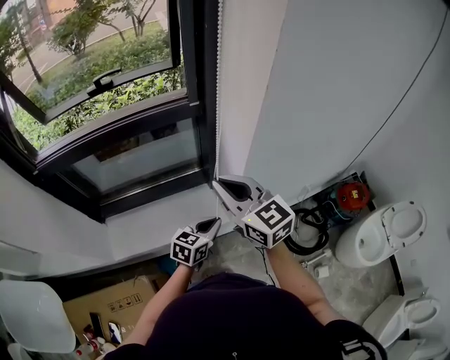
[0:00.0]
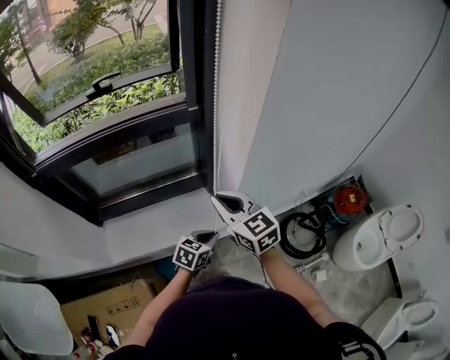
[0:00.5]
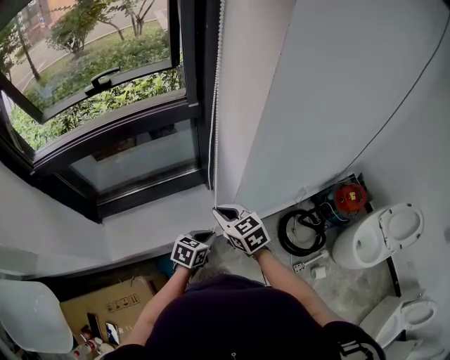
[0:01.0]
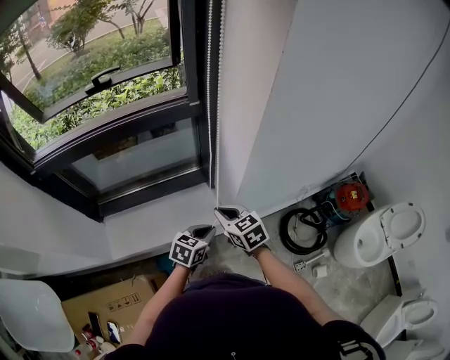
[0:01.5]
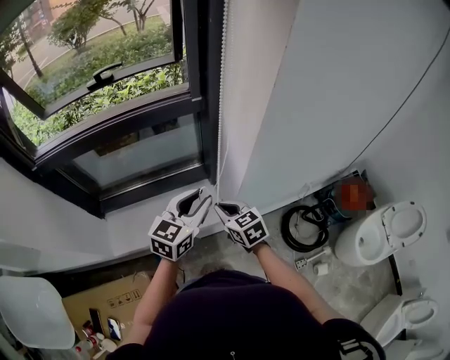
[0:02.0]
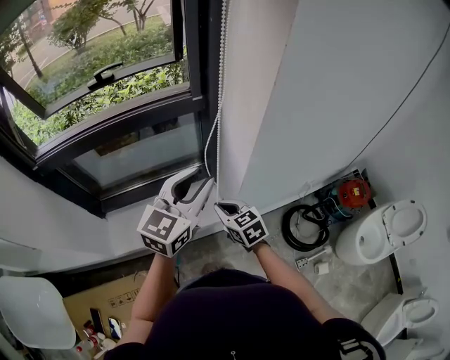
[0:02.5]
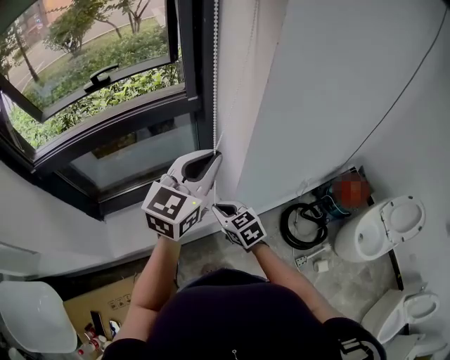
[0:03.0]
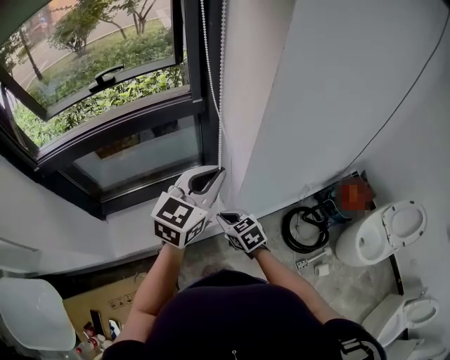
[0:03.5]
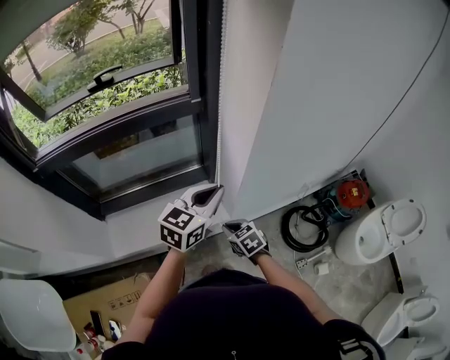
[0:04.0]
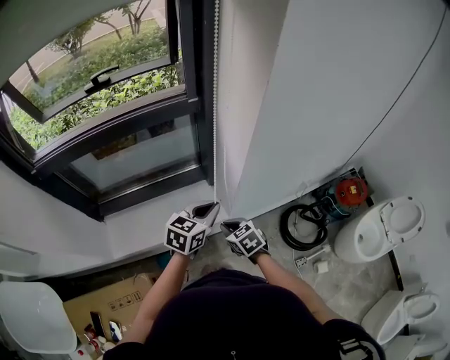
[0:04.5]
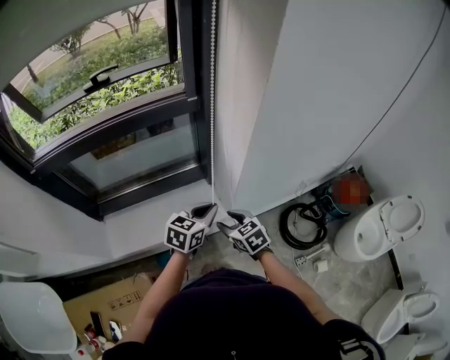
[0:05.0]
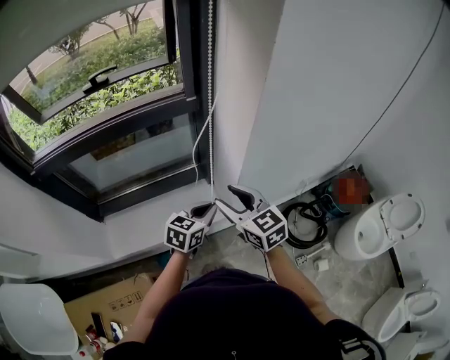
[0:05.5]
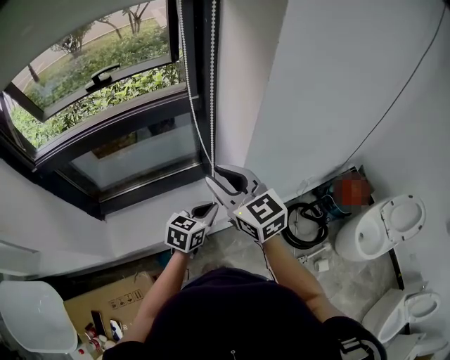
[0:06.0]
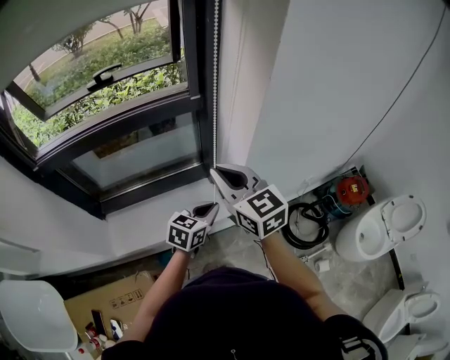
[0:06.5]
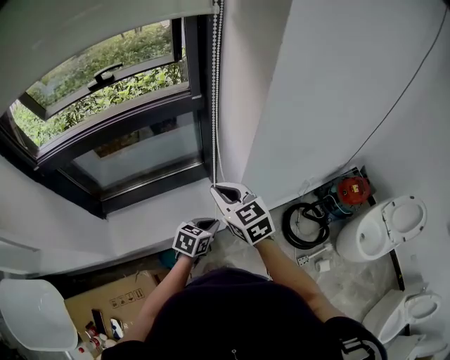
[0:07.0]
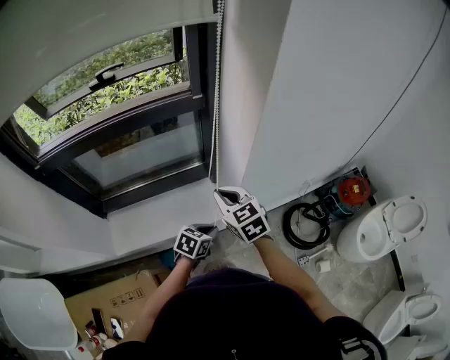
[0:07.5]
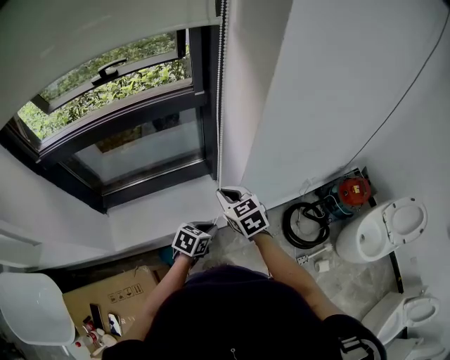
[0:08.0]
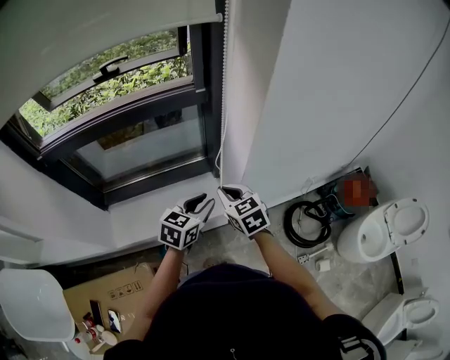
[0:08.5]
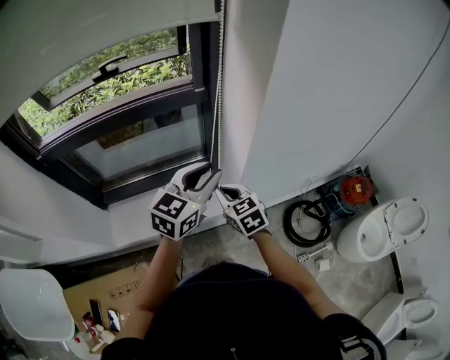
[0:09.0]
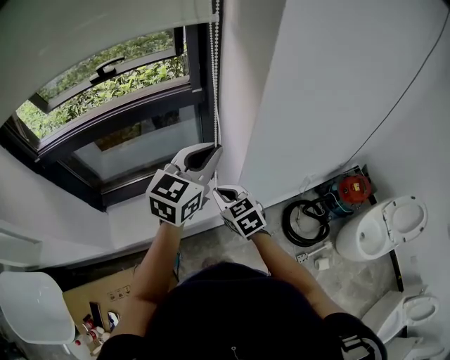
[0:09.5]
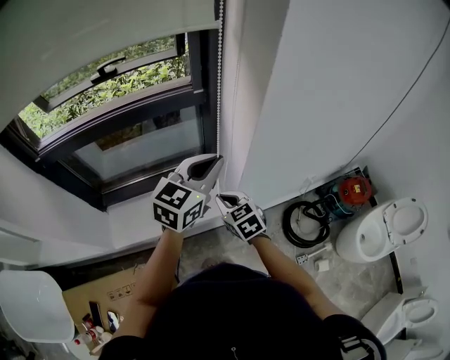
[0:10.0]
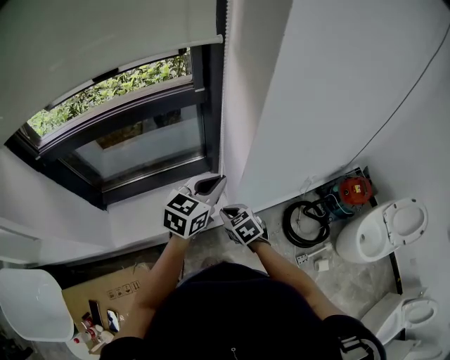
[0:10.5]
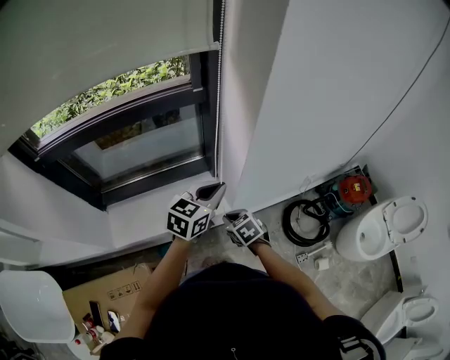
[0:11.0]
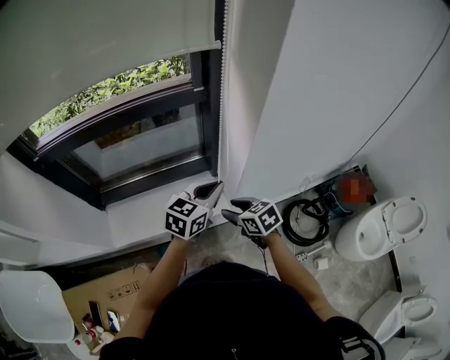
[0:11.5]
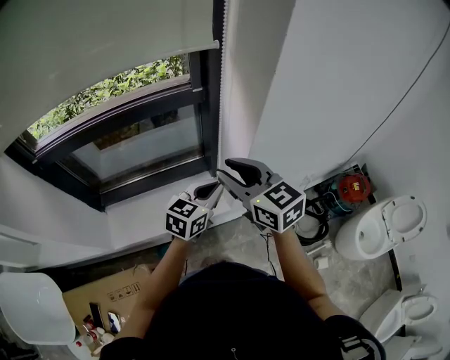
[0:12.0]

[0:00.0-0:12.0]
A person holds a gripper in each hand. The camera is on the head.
0:00.0 to 0:02.0: The left gripper heads upward, covering some 10 cm, and opens, while the right gripper goes approximately 20 cm downward, and changes its angle by some 30 degrees.
0:02.0 to 0:04.0: The right gripper shifts some 10 cm downward and backward. The left gripper travels upward and back again, some 15 cm each way, and closes.
0:04.0 to 0:06.0: The left gripper travels downward by approximately 10 cm. The right gripper is displaced upward by about 30 cm, angles its fingers upward, by roughly 40 degrees, and opens.
0:06.0 to 0:08.0: The right gripper moves downward, some 15 cm, swivels roughly 20 degrees, and closes its fingers, while the left gripper moves downward and backward, some 15 cm, and changes its angle by approximately 20 degrees.
0:08.0 to 0:10.0: The left gripper is displaced upward by some 30 cm, and angles its fingers upward, by roughly 30 degrees.
0:10.0 to 0:12.0: The left gripper moves downward, about 10 cm, while the right gripper travels upward by roughly 20 cm, turns by approximately 20 degrees, and opens up.

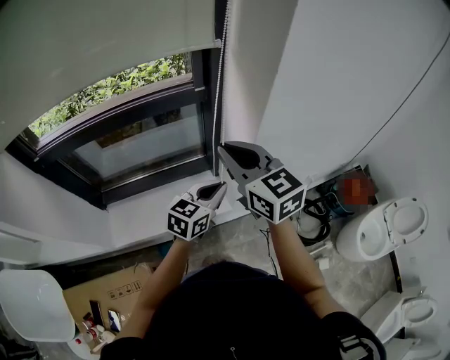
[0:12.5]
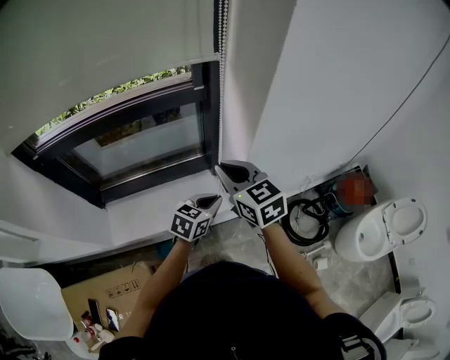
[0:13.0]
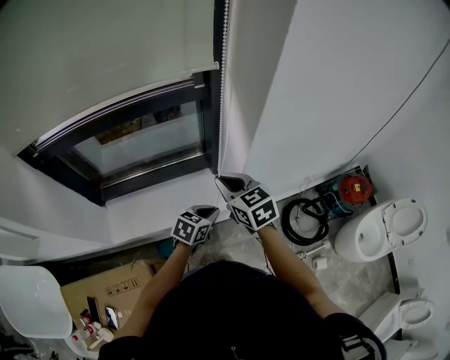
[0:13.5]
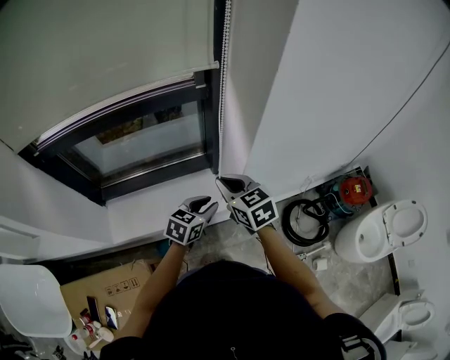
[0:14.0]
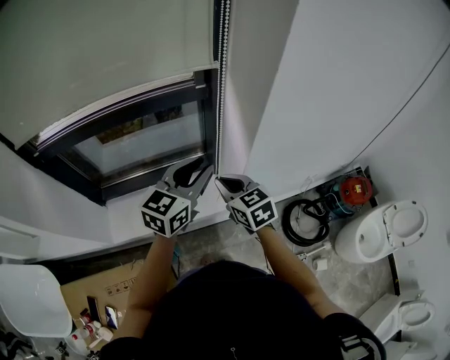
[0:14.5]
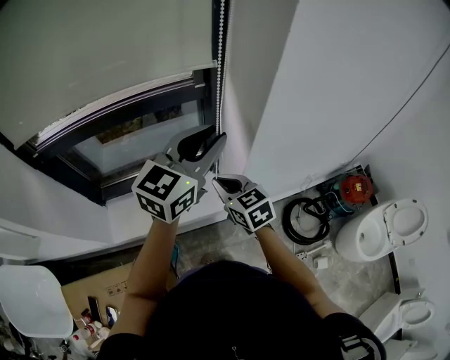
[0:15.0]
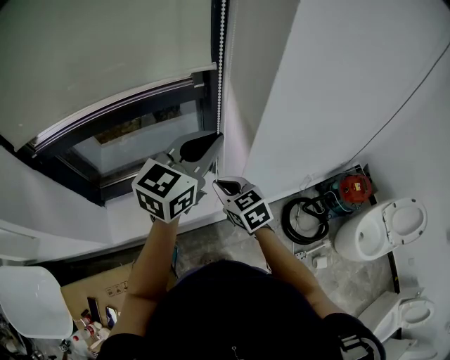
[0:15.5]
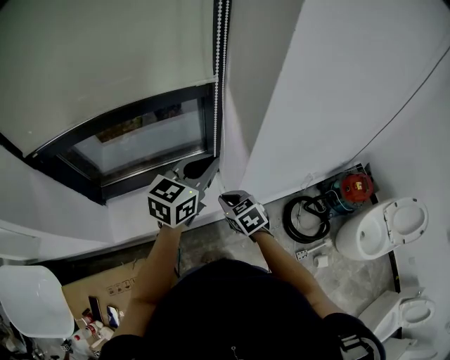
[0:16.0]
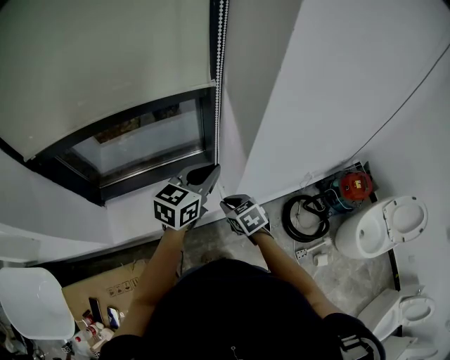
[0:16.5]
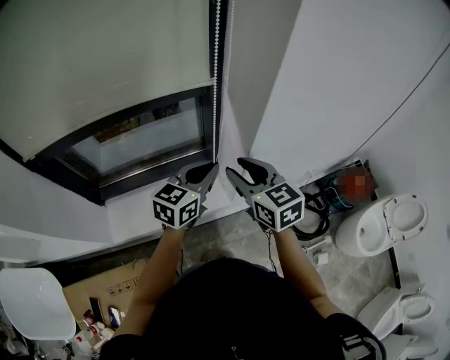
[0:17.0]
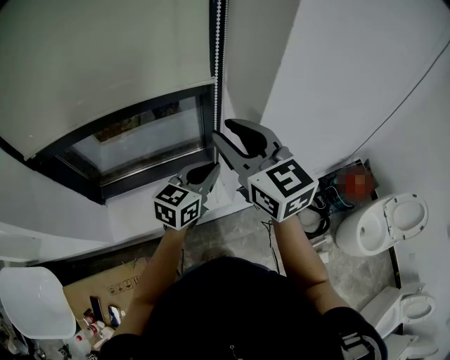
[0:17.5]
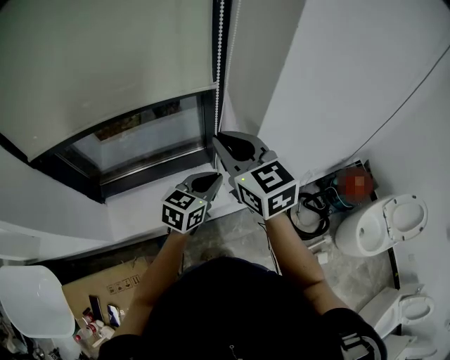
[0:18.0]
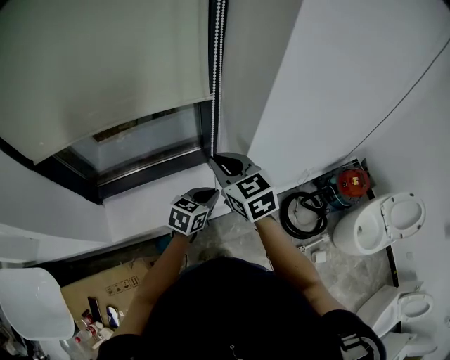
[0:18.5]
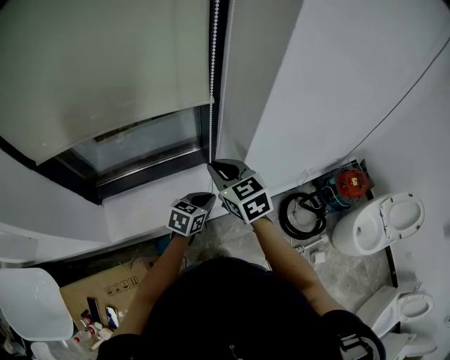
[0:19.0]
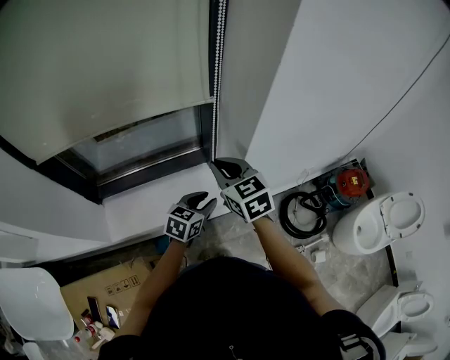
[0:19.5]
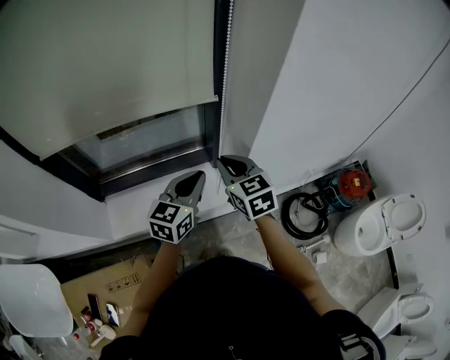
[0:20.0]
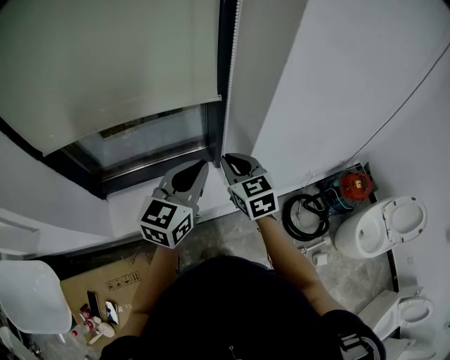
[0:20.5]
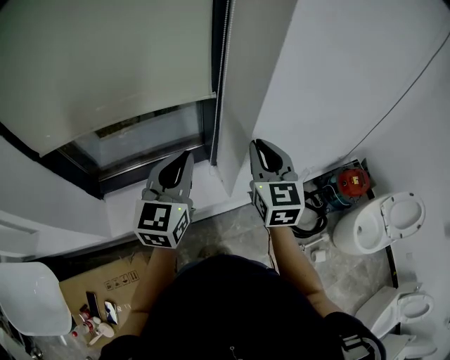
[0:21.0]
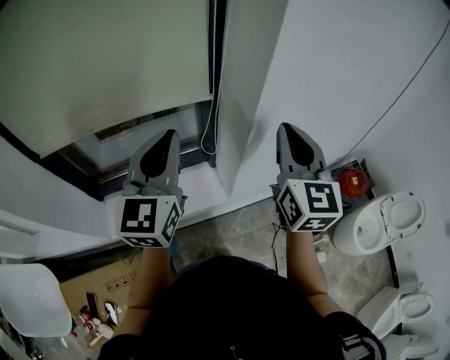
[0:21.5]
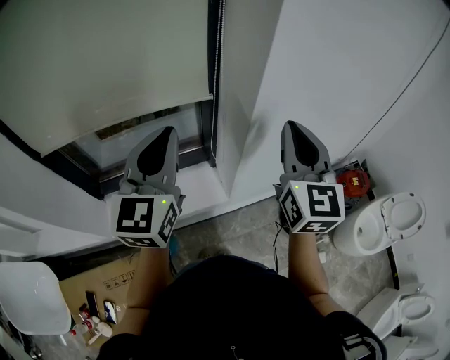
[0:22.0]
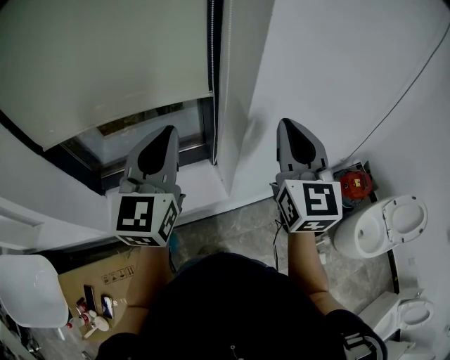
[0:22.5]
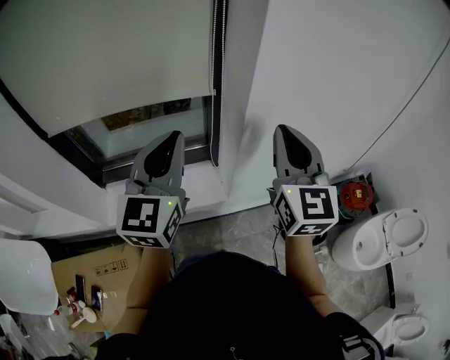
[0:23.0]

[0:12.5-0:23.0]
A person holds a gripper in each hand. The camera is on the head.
0:12.5 to 0:14.5: The right gripper travels downward by approximately 15 cm, while the left gripper shifts roughly 10 cm upward, and opens its fingers.
0:14.5 to 0:16.5: The left gripper moves approximately 10 cm upward and comes back, and closes up; the right gripper shifts approximately 15 cm downward, and changes its angle by about 20 degrees.
0:16.5 to 0:19.0: The left gripper goes approximately 15 cm downward, and rotates roughly 20 degrees, while the right gripper is displaced upward by about 15 cm, swivels approximately 20 degrees, and opens and closes again.
0:19.0 to 0:21.0: The left gripper goes about 25 cm upward, rotates approximately 40 degrees, and opens, then closes once more, while the right gripper travels to the right and upward by roughly 15 cm, and swivels approximately 30 degrees.
0:21.0 to 0:23.0: The left gripper moves upward, roughly 10 cm; the right gripper shifts roughly 10 cm upward and to the right.

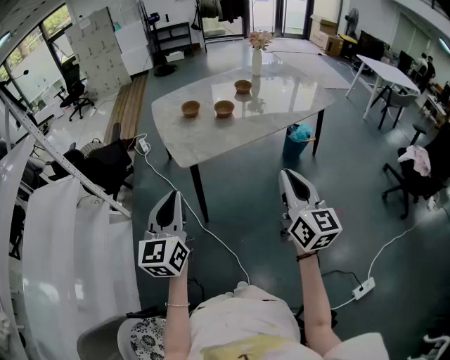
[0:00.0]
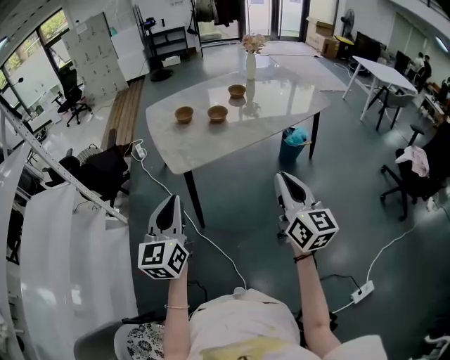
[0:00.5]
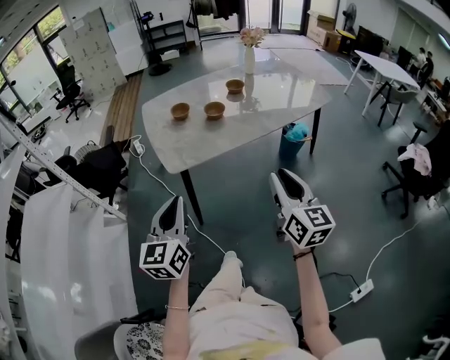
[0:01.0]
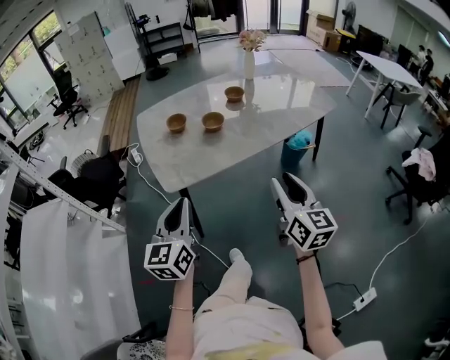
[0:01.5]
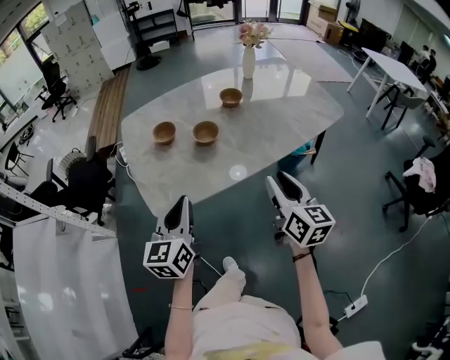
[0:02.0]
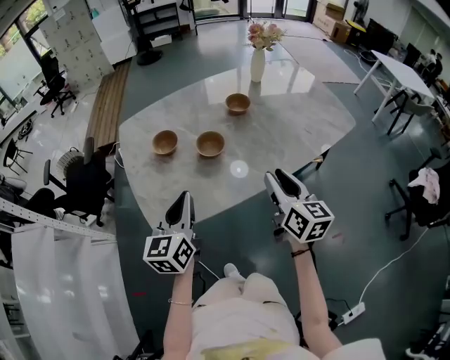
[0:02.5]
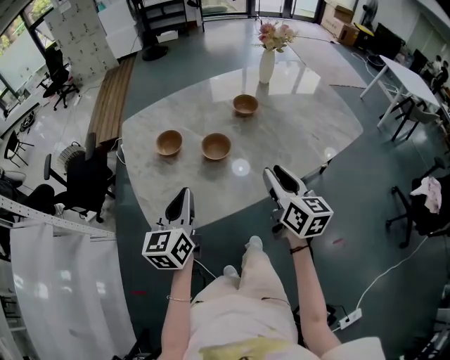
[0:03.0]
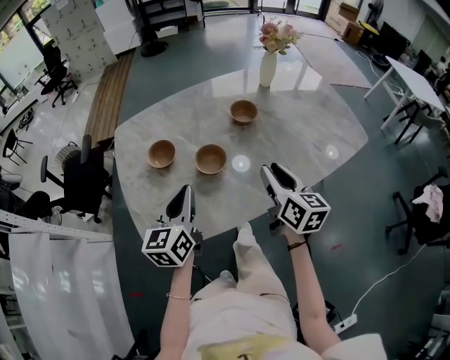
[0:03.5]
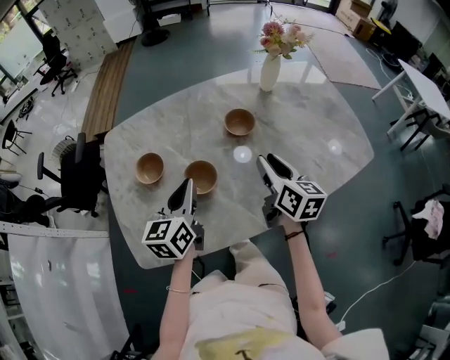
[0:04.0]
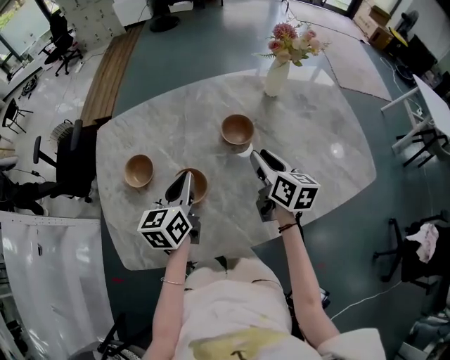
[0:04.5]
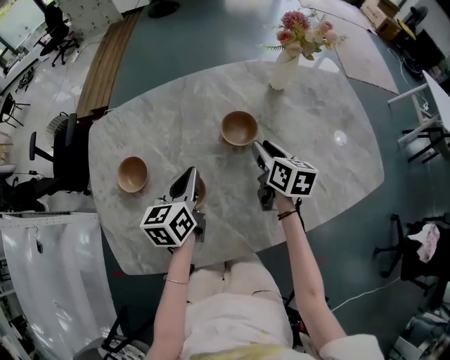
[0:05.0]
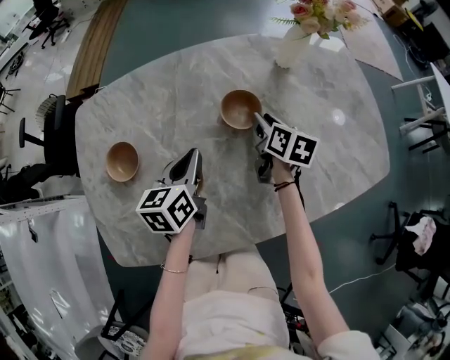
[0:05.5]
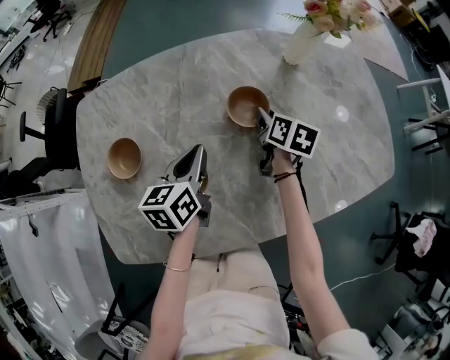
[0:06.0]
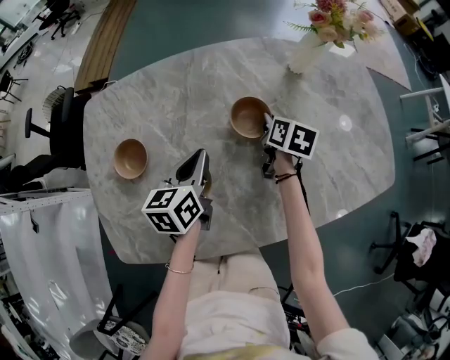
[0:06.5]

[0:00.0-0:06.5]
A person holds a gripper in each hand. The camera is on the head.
0:00.0 to 0:02.0: The grippers both shift forward by about 30 cm. The right gripper opens its fingers.
0:02.0 to 0:04.5: Both grippers travel together forward, approximately 40 cm. The right gripper turns by approximately 20 degrees.
0:04.5 to 0:06.5: The left gripper shifts some 10 cm downward and forward. Meanwhile the right gripper heads forward and downward, covering approximately 20 cm, turns by some 20 degrees, and closes its fingers.
